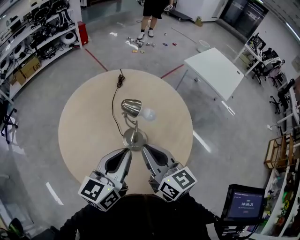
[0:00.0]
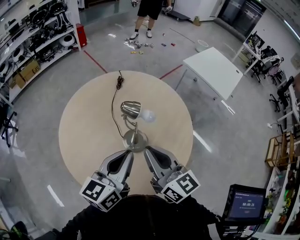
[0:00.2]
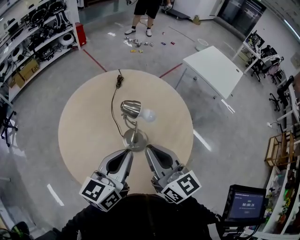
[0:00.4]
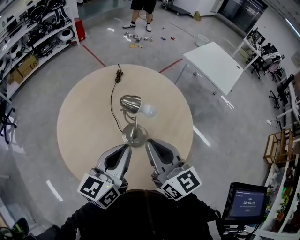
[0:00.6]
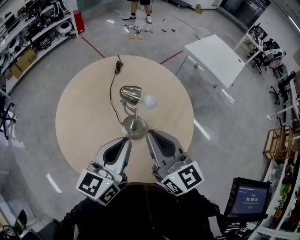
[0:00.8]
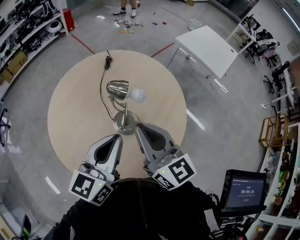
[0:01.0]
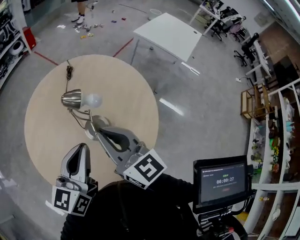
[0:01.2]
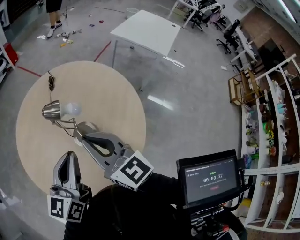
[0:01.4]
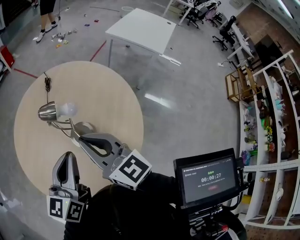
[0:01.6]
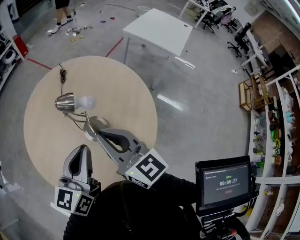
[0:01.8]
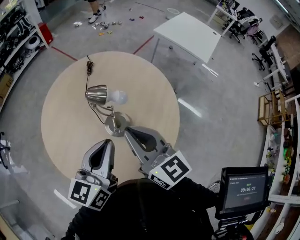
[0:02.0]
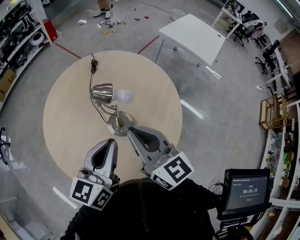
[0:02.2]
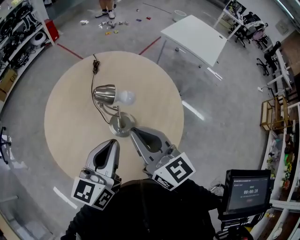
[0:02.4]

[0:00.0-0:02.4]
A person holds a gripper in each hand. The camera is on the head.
0:00.0 to 0:01.2: The right gripper moves some 5 cm.
0:01.2 to 0:02.4: The grippers make only small movements.

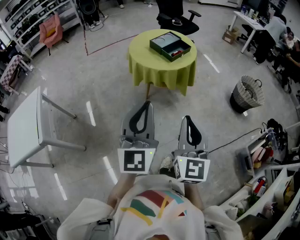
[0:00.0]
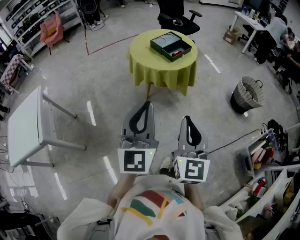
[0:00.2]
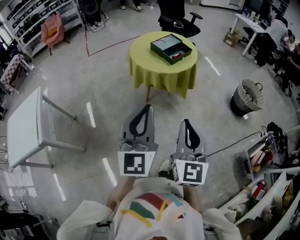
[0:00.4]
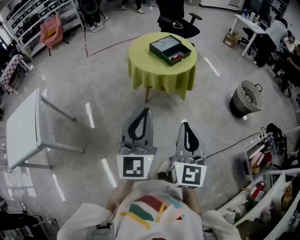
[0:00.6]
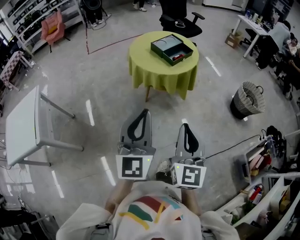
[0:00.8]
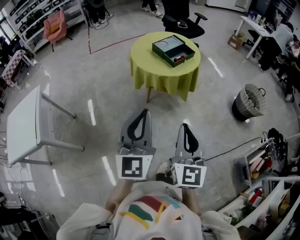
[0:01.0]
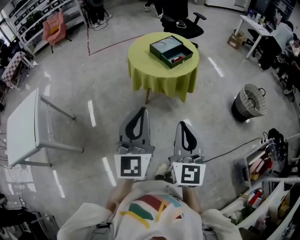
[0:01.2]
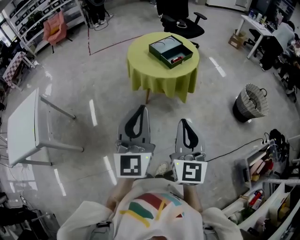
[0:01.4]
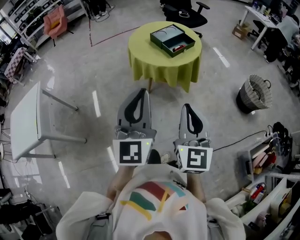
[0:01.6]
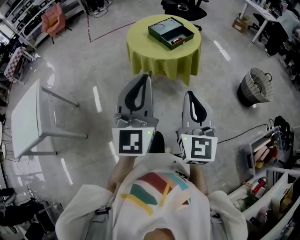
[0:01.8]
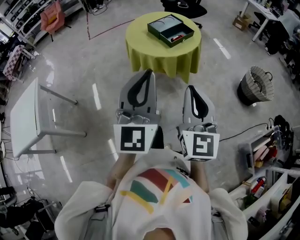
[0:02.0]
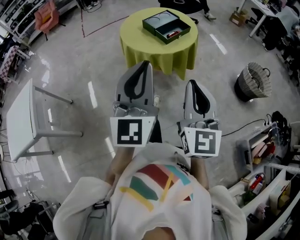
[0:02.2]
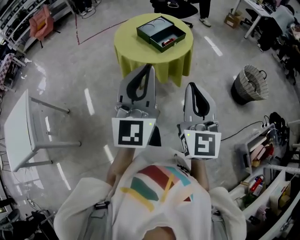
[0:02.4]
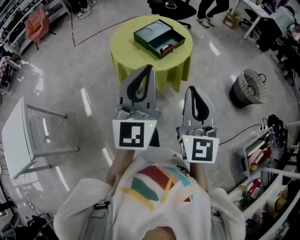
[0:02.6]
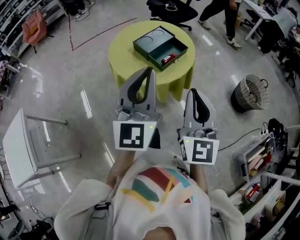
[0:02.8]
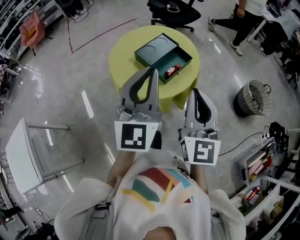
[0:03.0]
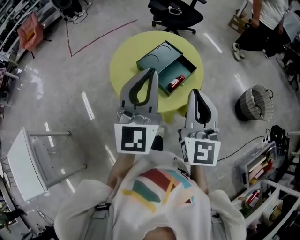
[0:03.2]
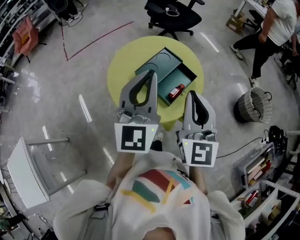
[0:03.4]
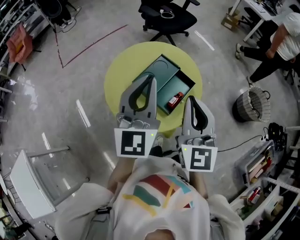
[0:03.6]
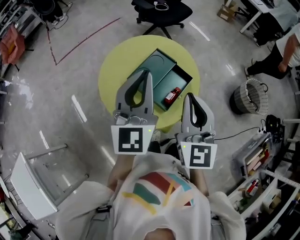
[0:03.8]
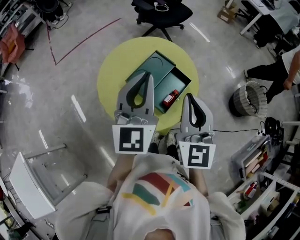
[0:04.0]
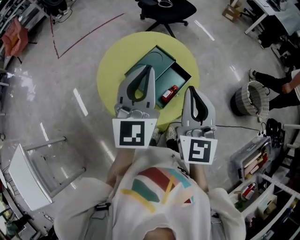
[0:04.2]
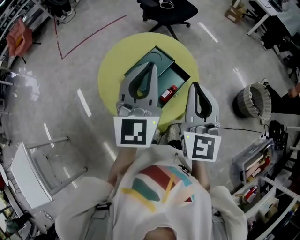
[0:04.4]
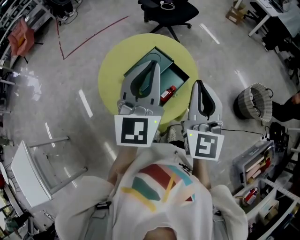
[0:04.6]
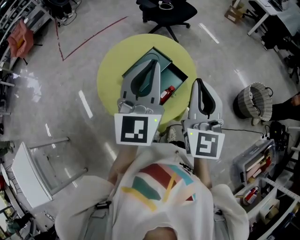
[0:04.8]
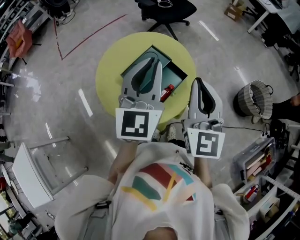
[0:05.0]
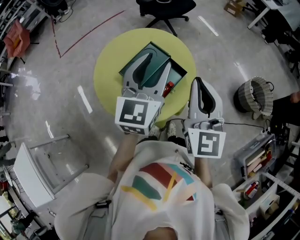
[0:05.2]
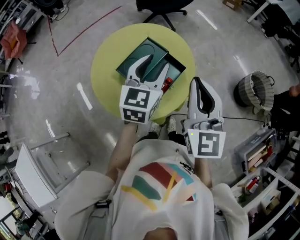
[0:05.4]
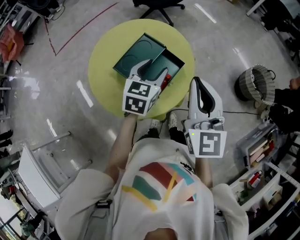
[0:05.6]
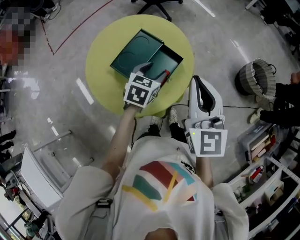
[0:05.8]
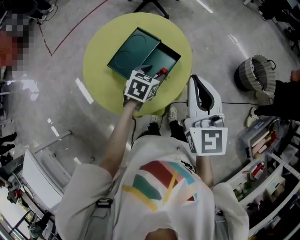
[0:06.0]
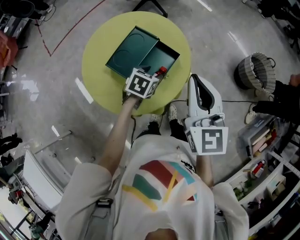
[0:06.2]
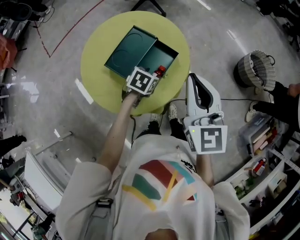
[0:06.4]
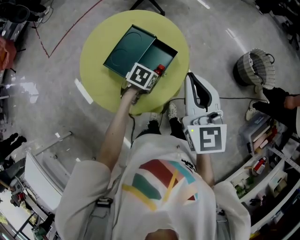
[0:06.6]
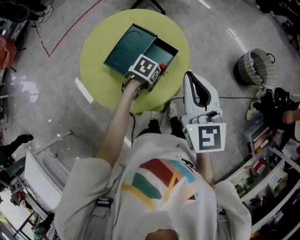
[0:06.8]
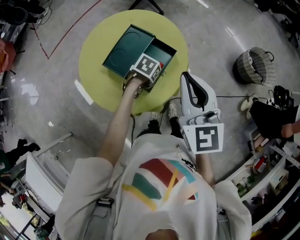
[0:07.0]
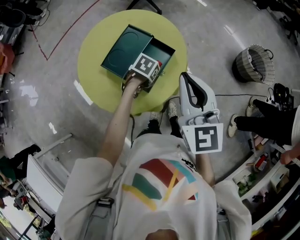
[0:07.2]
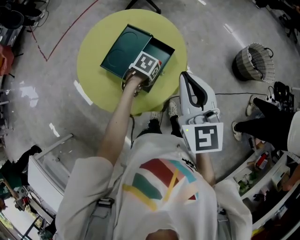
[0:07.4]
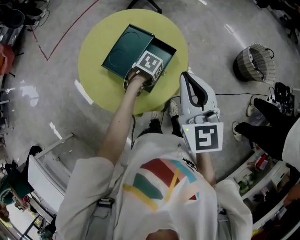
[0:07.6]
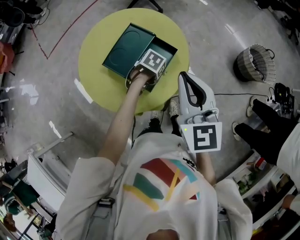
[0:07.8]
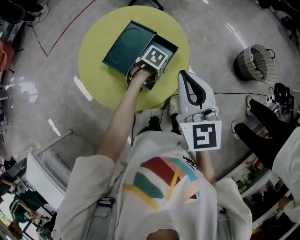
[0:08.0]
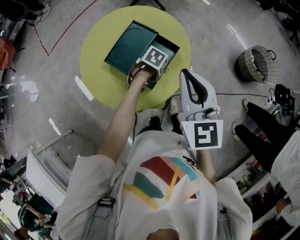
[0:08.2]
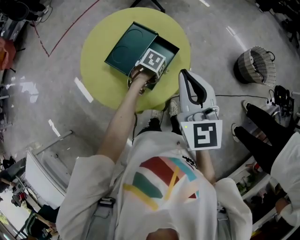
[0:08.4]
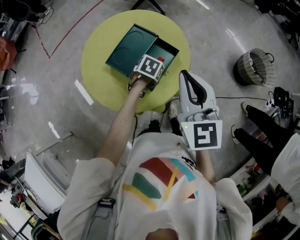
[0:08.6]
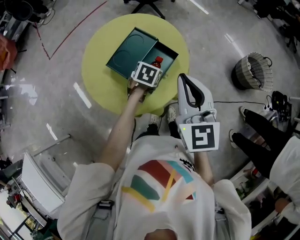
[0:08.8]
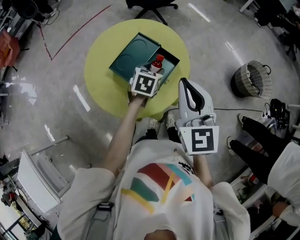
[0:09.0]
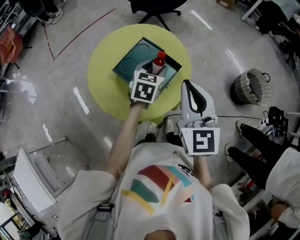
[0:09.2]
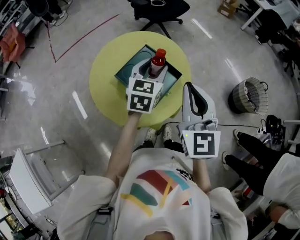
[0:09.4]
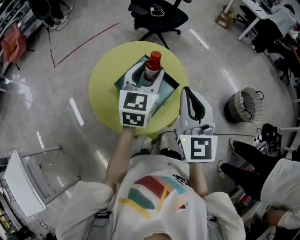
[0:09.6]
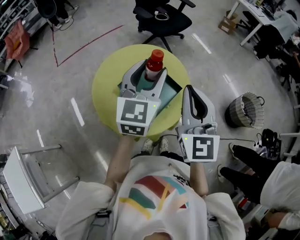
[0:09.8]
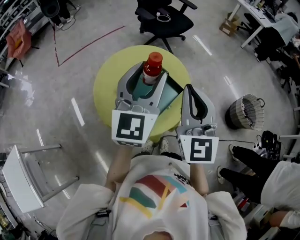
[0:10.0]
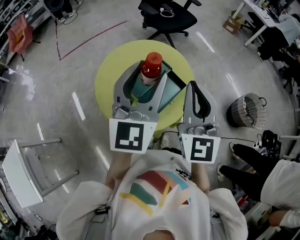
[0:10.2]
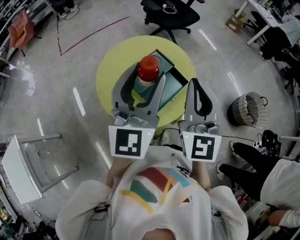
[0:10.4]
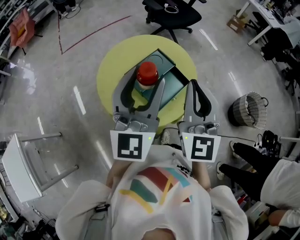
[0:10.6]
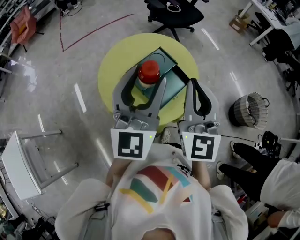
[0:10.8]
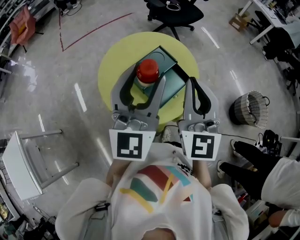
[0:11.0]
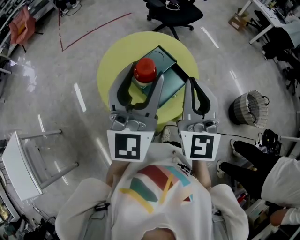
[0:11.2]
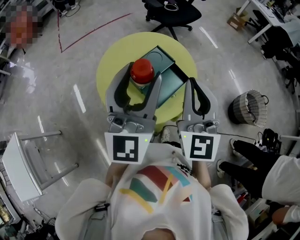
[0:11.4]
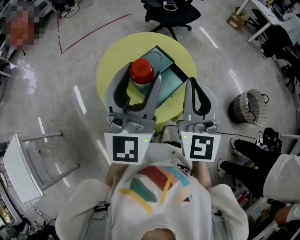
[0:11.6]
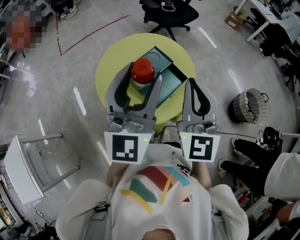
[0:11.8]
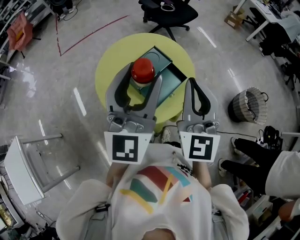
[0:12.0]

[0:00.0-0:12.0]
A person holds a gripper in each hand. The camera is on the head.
0:00.0 to 0:01.6: The two grippers go about 10 cm forward.
0:01.6 to 0:03.0: The grippers both shift forward by about 30 cm.
0:03.0 to 0:04.4: The two grippers go roughly 20 cm forward.
0:04.4 to 0:06.0: The left gripper goes some 30 cm downward, points its fingers some 50 degrees further downward, and opens up, while the right gripper heads downward, covering approximately 5 cm.
0:06.0 to 0:07.6: The left gripper is displaced downward by some 10 cm, and turns by roughly 30 degrees.
0:07.6 to 0:09.0: The left gripper shifts about 10 cm upward, and swivels about 40 degrees.
0:09.0 to 0:10.4: The left gripper moves upward, about 30 cm, and tips its fingers upward by some 60 degrees. The right gripper goes some 10 cm upward.
0:10.4 to 0:12.0: There are only small adjustments of the grippers.

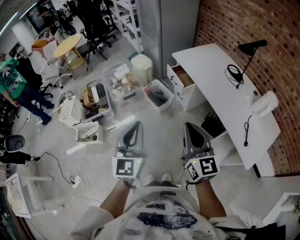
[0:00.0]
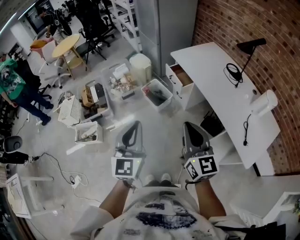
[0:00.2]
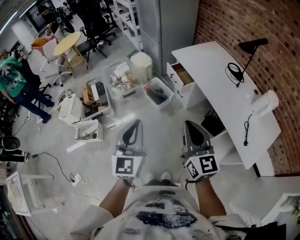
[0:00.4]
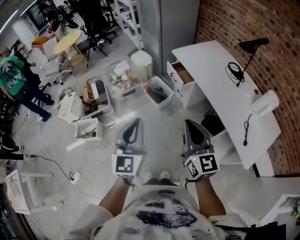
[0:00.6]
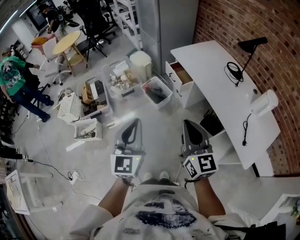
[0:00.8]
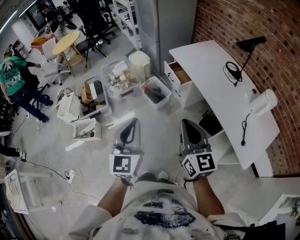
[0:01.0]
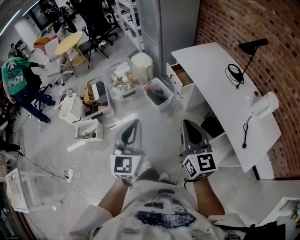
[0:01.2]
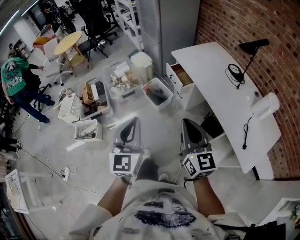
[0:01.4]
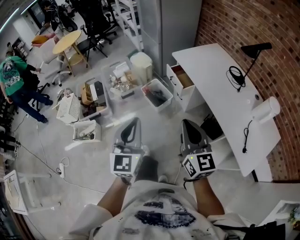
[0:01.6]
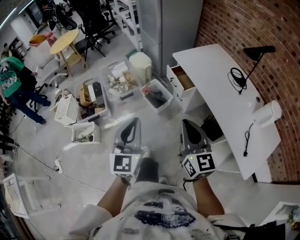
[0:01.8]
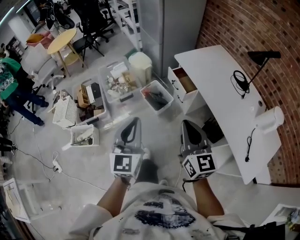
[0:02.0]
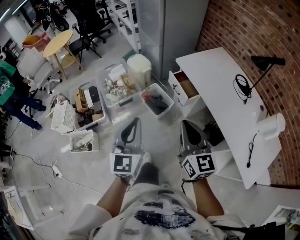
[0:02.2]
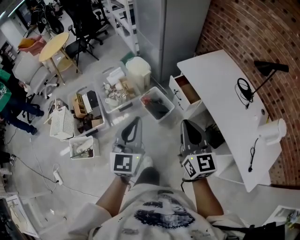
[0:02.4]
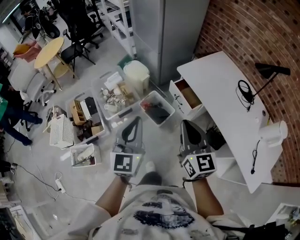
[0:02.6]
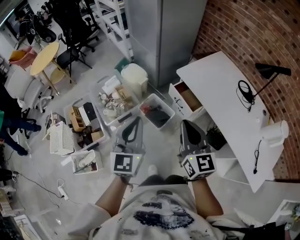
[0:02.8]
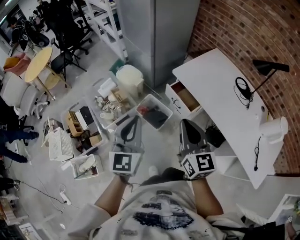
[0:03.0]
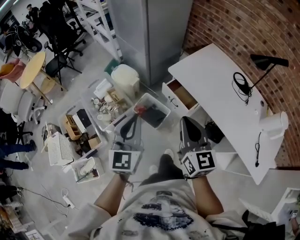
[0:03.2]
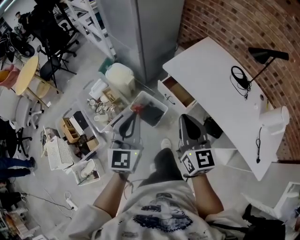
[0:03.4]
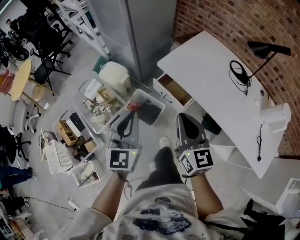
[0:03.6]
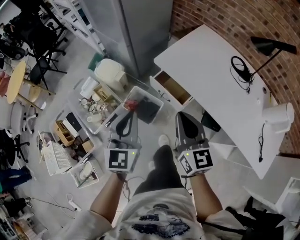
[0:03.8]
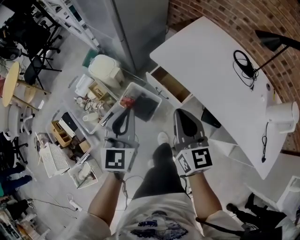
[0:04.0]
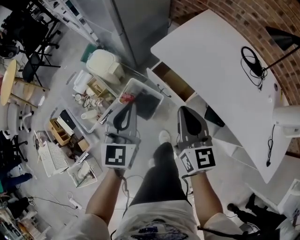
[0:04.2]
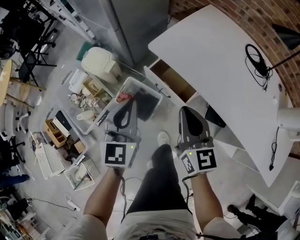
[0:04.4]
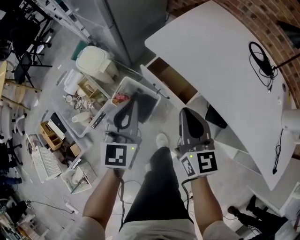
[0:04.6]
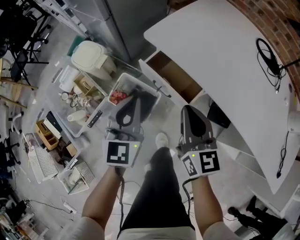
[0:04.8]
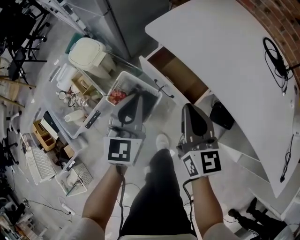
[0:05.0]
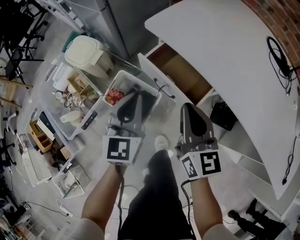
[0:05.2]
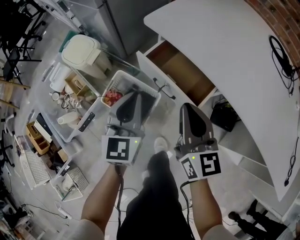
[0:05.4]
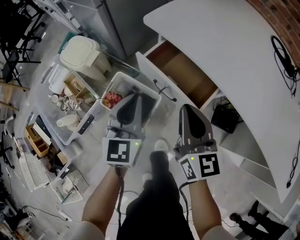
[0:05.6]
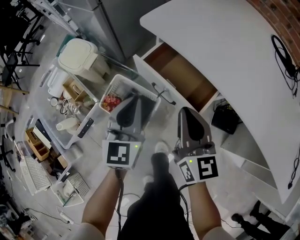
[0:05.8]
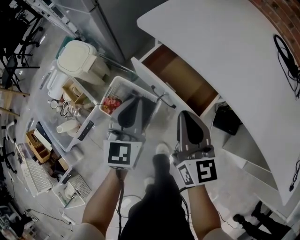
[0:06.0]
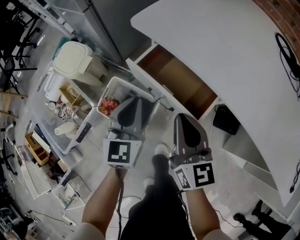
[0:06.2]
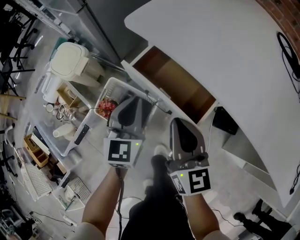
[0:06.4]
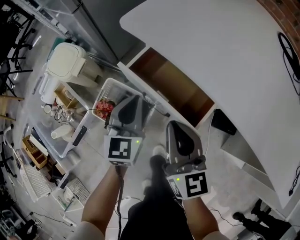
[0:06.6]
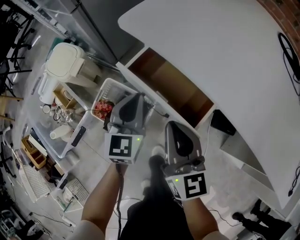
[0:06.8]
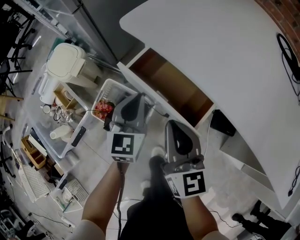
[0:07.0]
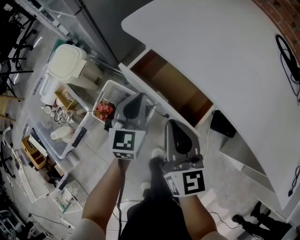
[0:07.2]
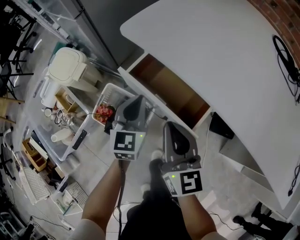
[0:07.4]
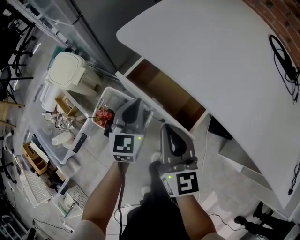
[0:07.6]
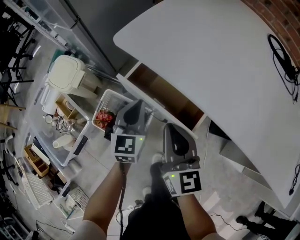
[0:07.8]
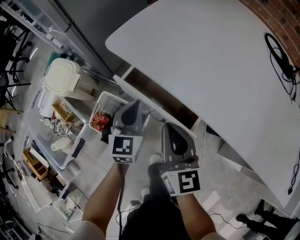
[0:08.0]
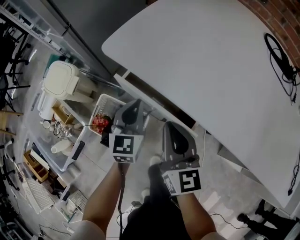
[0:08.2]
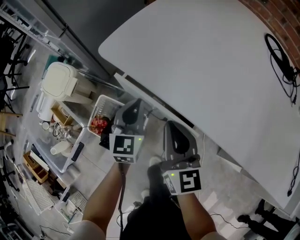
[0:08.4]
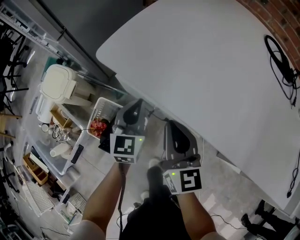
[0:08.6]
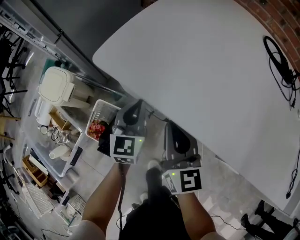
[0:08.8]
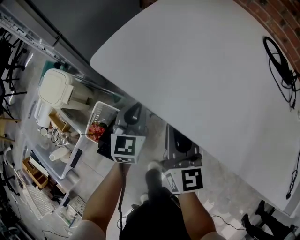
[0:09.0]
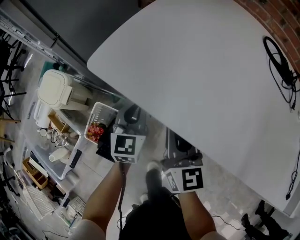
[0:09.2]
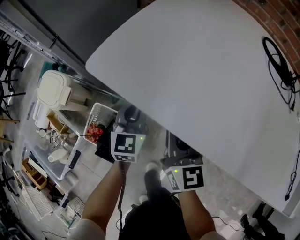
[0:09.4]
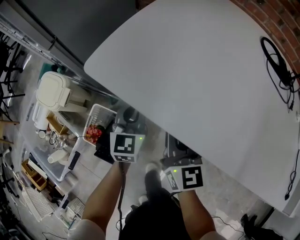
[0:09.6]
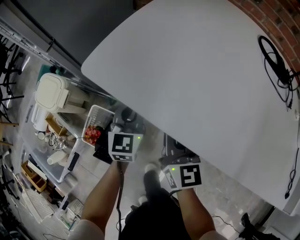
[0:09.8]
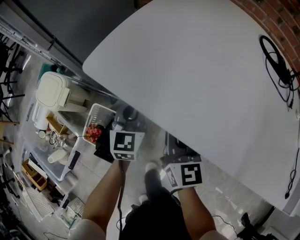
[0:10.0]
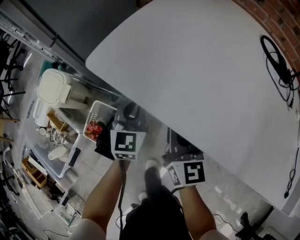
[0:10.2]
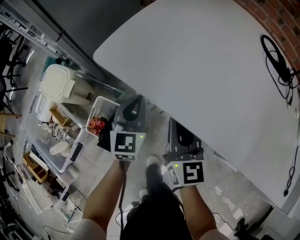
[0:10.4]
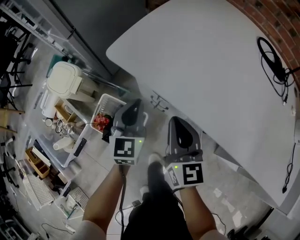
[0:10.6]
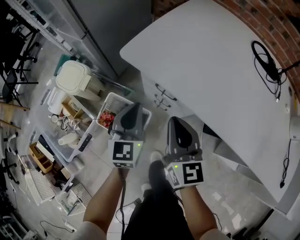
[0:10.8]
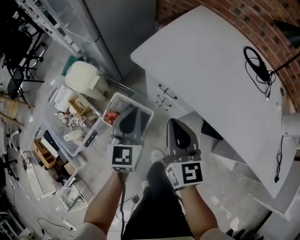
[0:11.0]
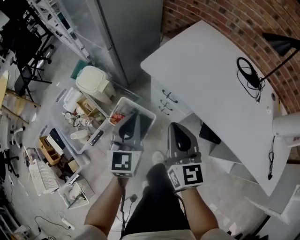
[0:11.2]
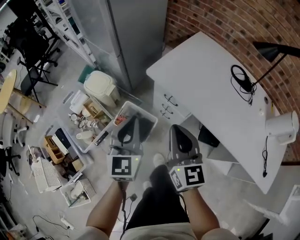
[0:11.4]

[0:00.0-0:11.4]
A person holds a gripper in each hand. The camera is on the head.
0:00.0 to 0:01.4: The grippers move only a little.
0:01.4 to 0:02.8: The grippers both shift forward by some 35 cm.
0:02.8 to 0:04.2: The two grippers go about 25 cm forward, downward and to the right.
0:04.2 to 0:05.6: The grippers both shift downward by roughly 25 cm.
0:05.6 to 0:07.2: The left gripper is displaced downward and forward by about 10 cm; the right gripper changes place by some 5 cm.
0:07.2 to 0:08.6: Both grippers move forward, some 5 cm.
0:08.6 to 0:10.0: The right gripper ends up some 5 cm from where it was.
0:10.0 to 0:11.4: The grippers both shift upward and backward by about 40 cm.
